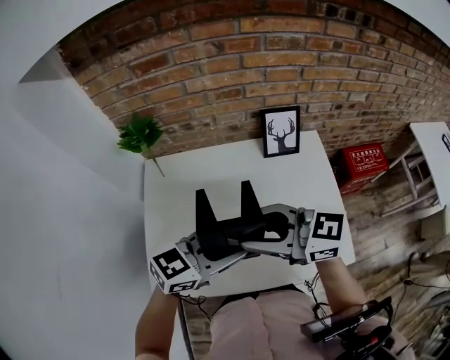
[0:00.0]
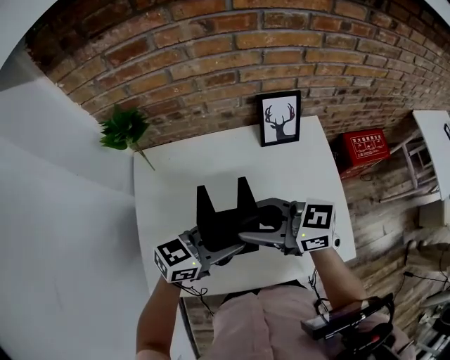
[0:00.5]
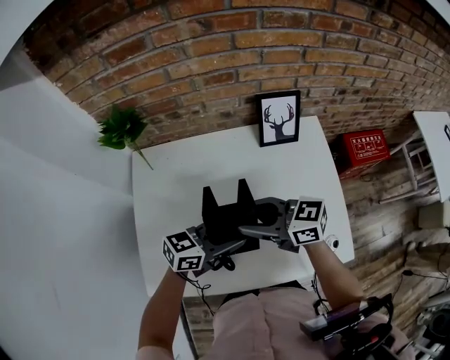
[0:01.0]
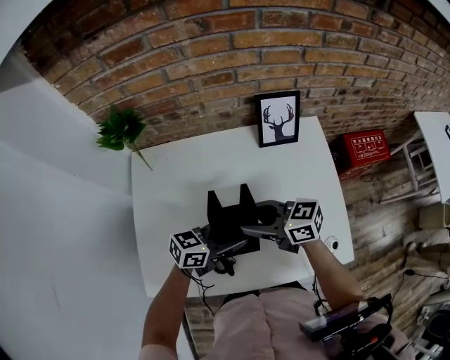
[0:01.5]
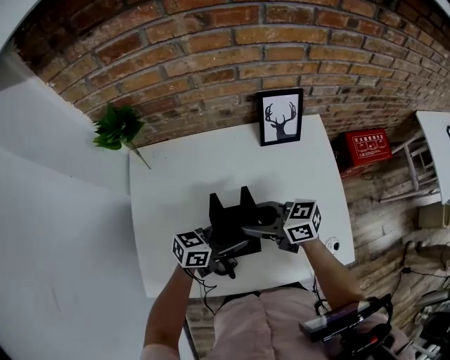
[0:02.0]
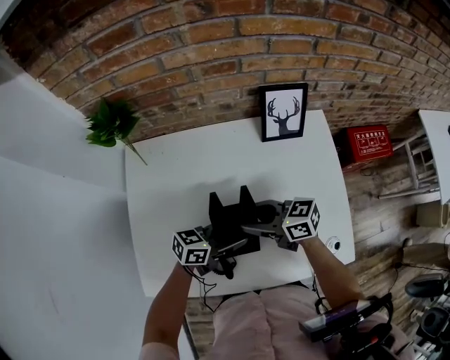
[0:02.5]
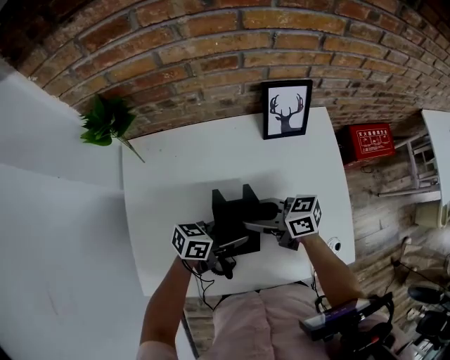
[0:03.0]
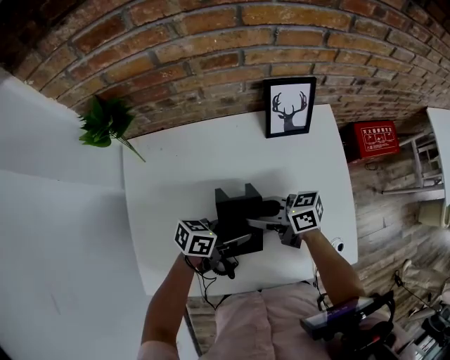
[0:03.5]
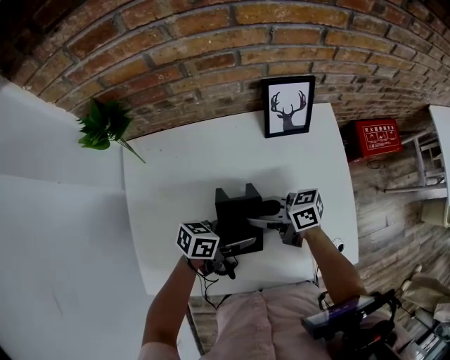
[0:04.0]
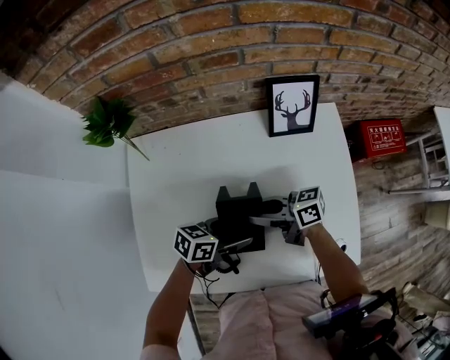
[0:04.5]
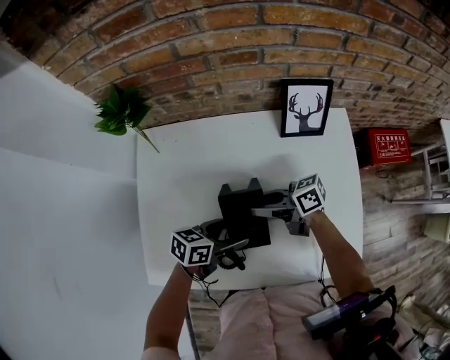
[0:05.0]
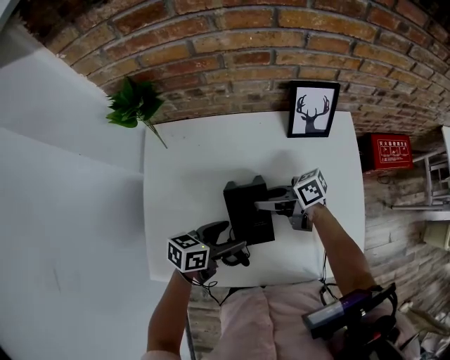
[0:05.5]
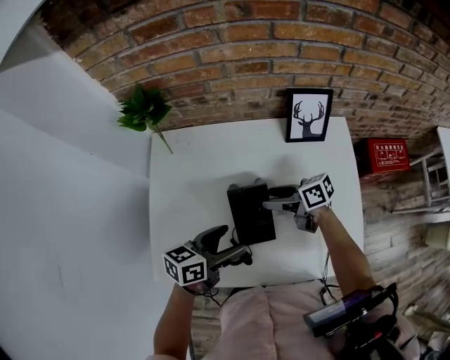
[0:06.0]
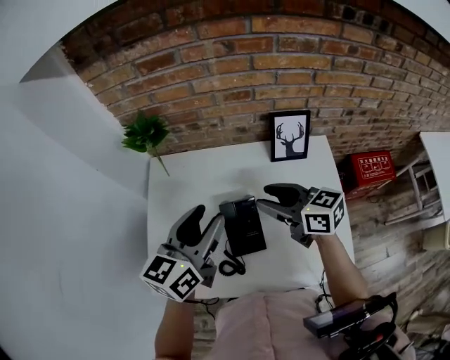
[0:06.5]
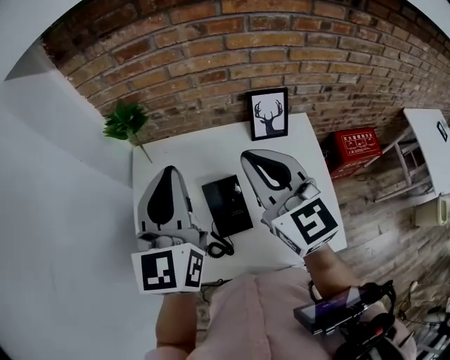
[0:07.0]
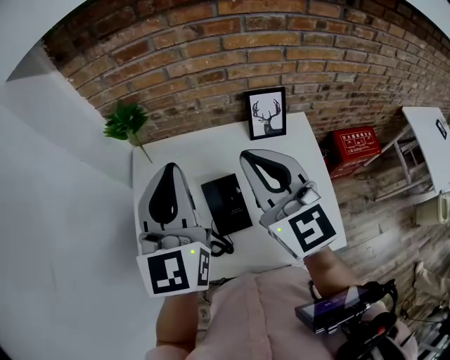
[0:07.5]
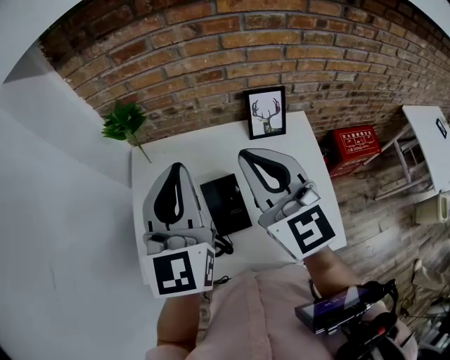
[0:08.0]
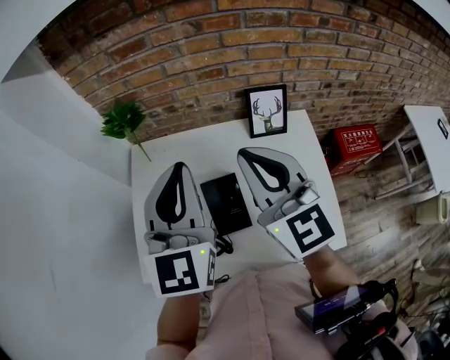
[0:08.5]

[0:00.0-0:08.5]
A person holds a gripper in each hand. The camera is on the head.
0:00.0 to 0:02.0: The grippers both shift downward by approximately 20 cm. The left gripper rotates some 30 degrees; the right gripper rotates roughly 20 degrees.
0:02.0 to 0:04.0: The left gripper opens up. The right gripper is displaced downward by some 5 cm.
0:04.0 to 0:06.5: The right gripper travels upward by approximately 15 cm, and rotates about 30 degrees. The left gripper travels upward by about 25 cm, and rotates some 60 degrees.
0:06.5 to 0:08.5: The two grippers go roughly 15 cm upward. The right gripper changes its angle by roughly 40 degrees, and closes its fingers, while the left gripper swivels approximately 40 degrees, and closes.

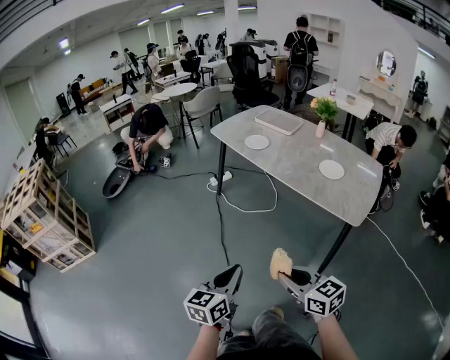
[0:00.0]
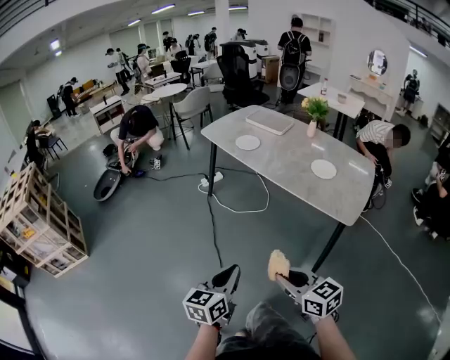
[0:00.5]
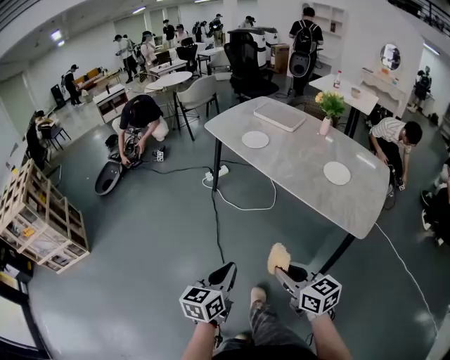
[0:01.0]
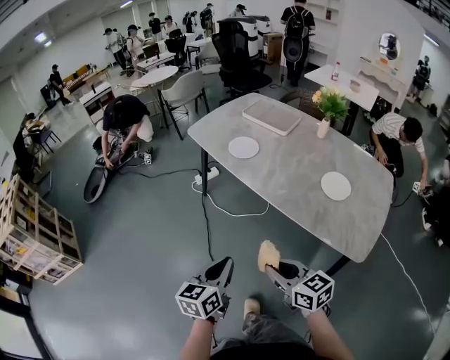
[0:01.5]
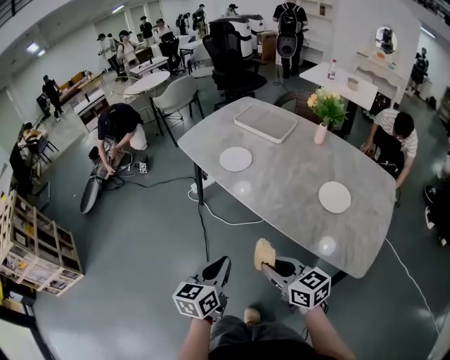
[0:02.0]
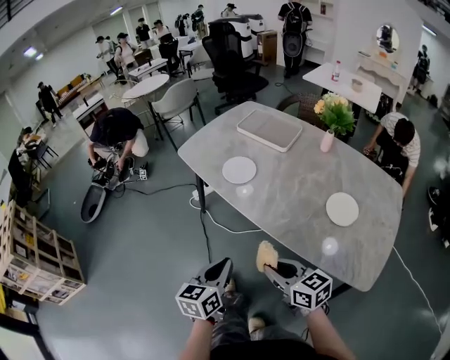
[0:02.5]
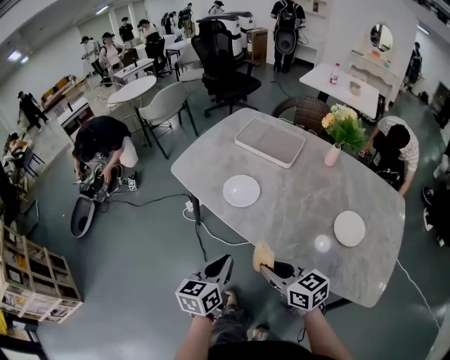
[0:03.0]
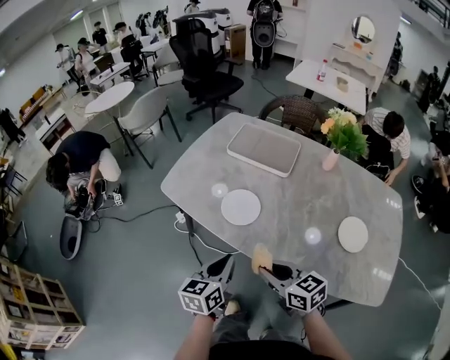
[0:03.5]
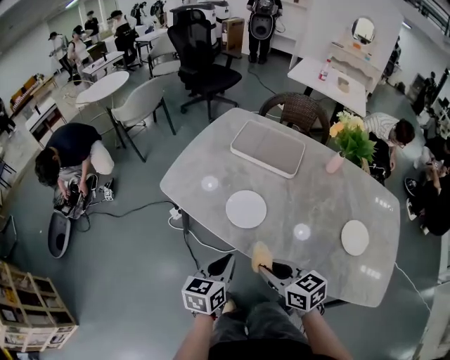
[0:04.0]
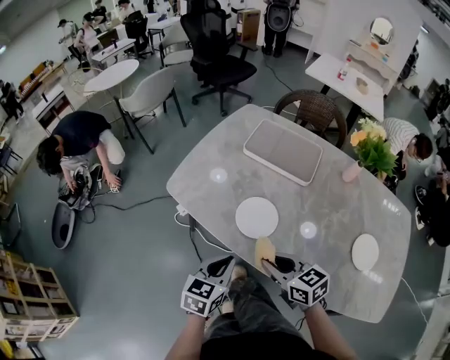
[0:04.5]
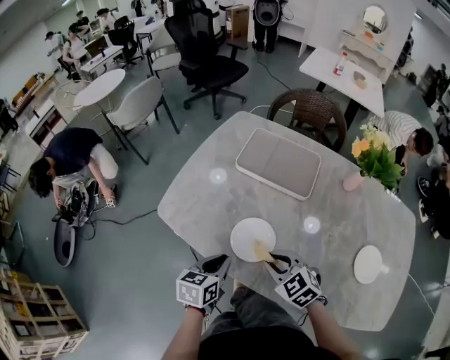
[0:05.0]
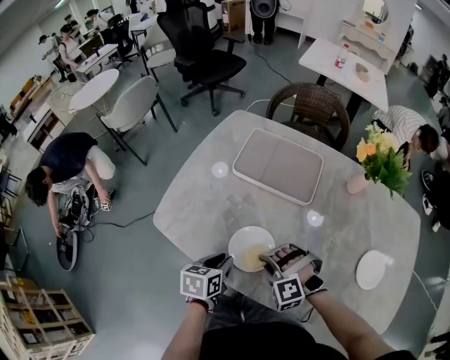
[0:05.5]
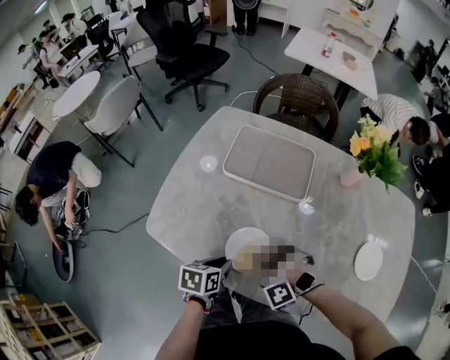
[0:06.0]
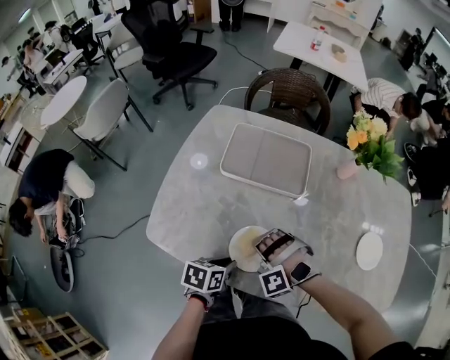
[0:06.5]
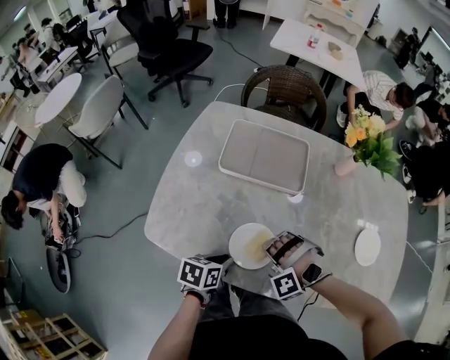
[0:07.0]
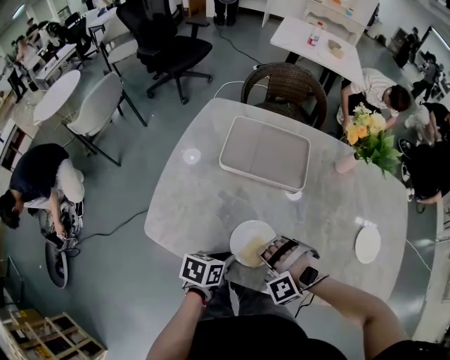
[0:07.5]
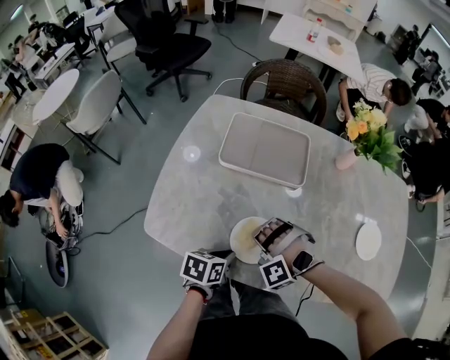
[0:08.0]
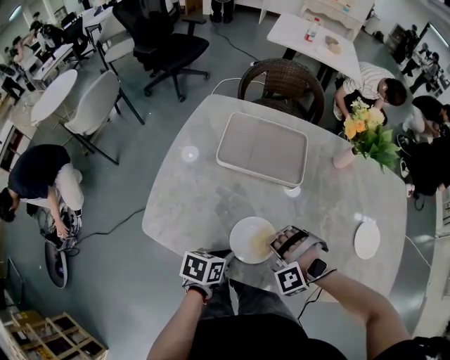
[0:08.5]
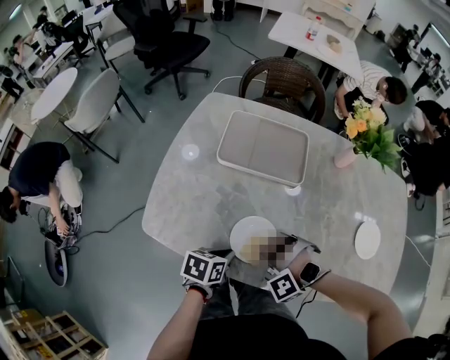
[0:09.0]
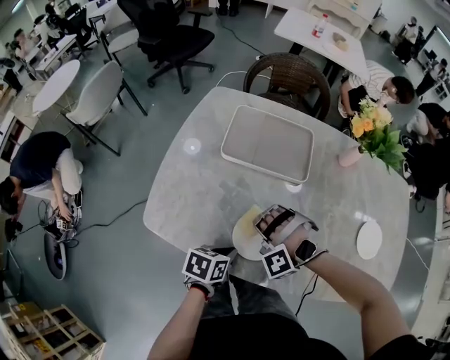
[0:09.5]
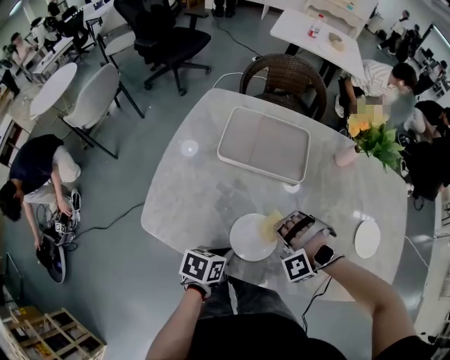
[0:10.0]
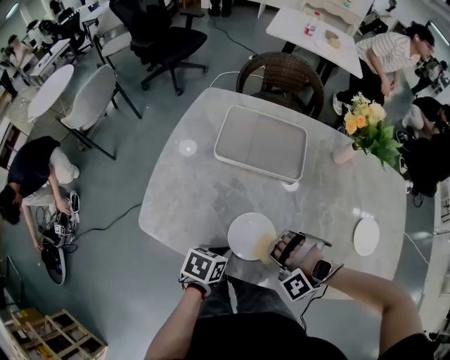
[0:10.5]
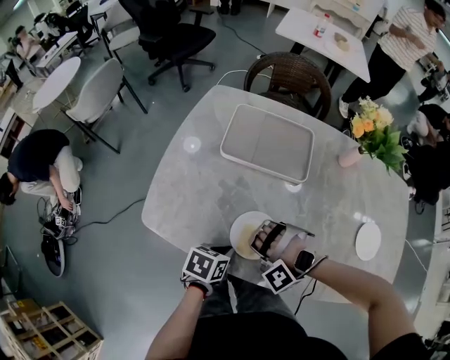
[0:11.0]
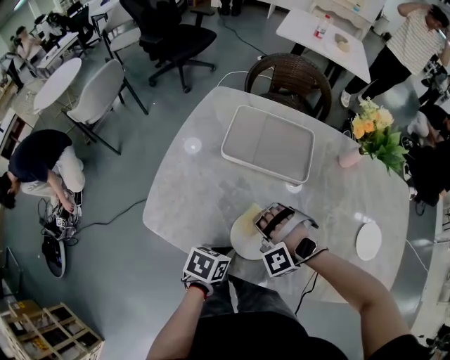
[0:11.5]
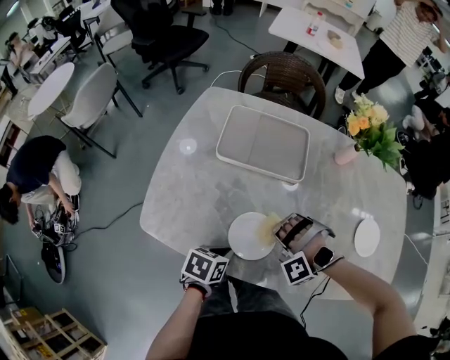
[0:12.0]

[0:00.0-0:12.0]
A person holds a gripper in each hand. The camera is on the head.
0:00.0 to 0:02.0: The left gripper changes place by about 30 cm.
0:02.0 to 0:04.0: The left gripper moves roughly 30 cm.
0:04.0 to 0:06.0: The left gripper moves about 20 cm, and swivels some 30 degrees.

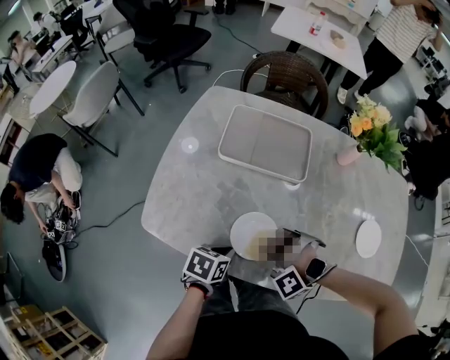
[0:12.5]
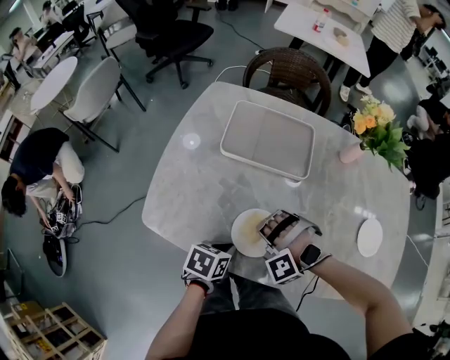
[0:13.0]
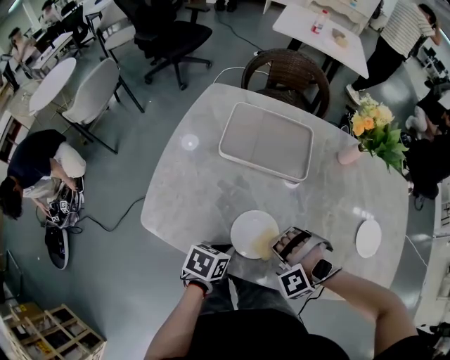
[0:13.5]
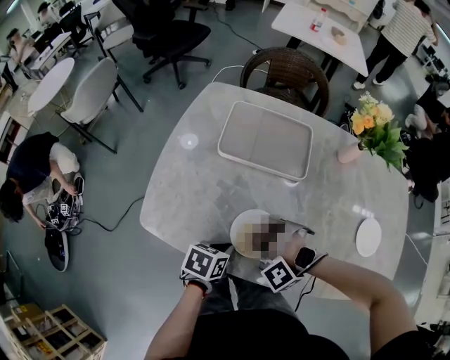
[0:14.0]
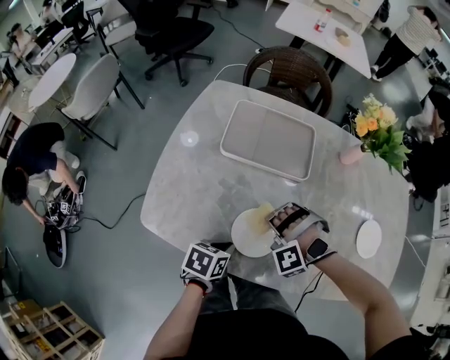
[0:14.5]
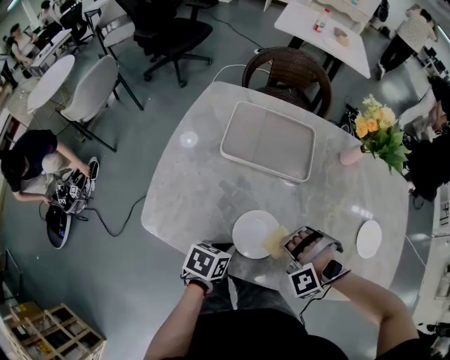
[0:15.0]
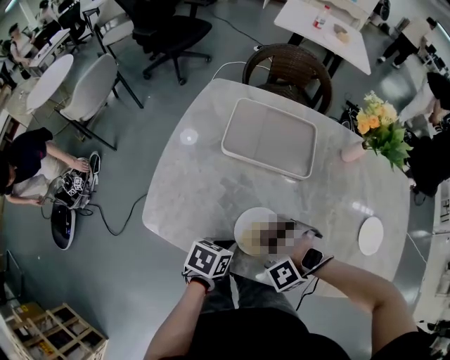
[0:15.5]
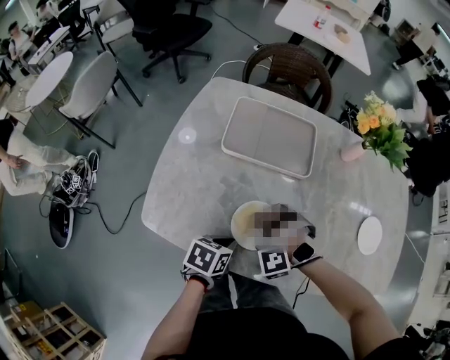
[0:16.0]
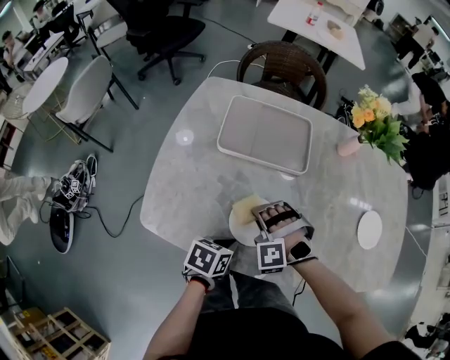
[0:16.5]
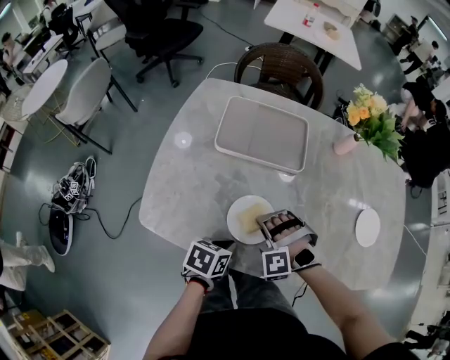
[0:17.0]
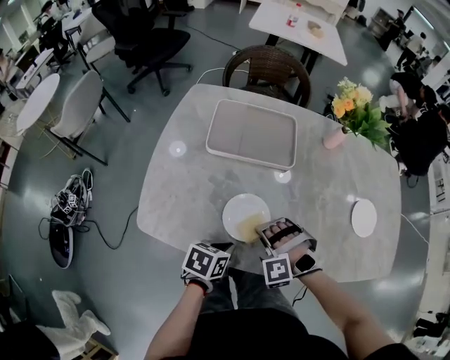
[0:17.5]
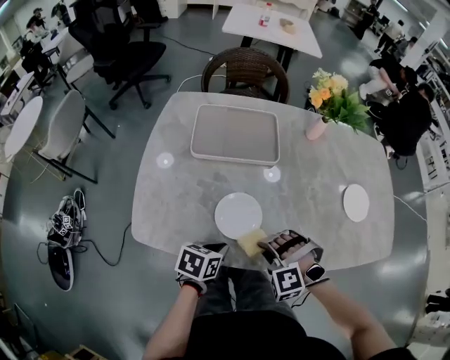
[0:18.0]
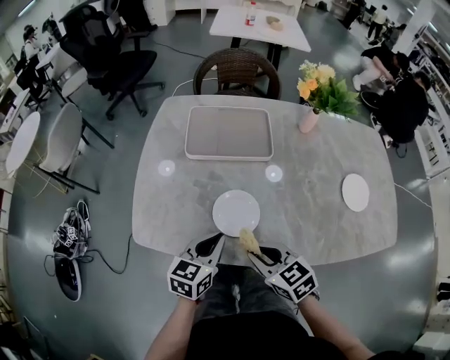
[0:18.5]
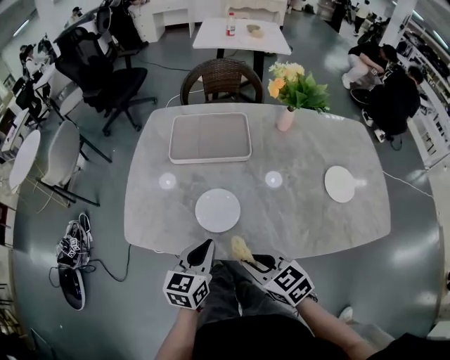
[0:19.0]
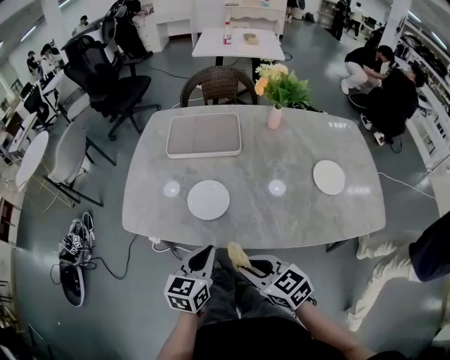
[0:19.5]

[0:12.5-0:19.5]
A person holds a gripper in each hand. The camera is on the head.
0:17.5 to 0:19.5: The left gripper heads upward, covering some 10 cm, and swivels some 40 degrees.
